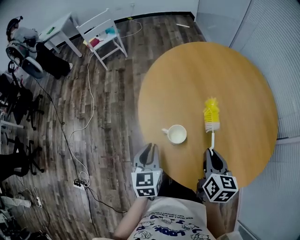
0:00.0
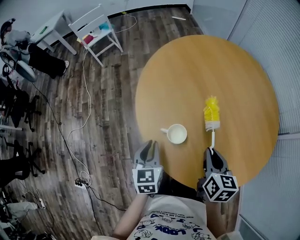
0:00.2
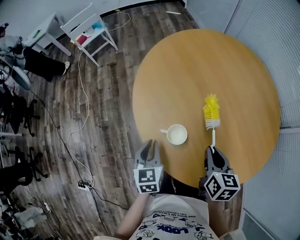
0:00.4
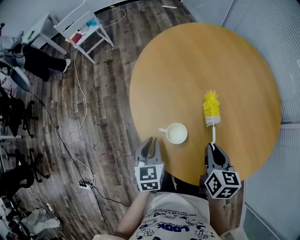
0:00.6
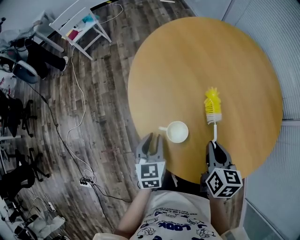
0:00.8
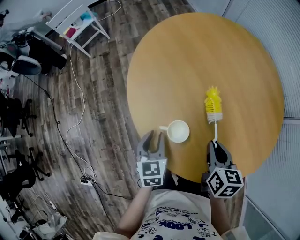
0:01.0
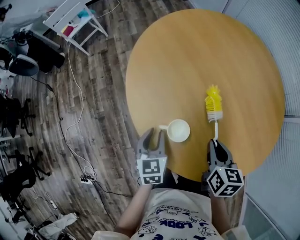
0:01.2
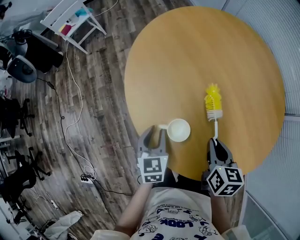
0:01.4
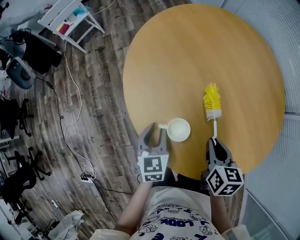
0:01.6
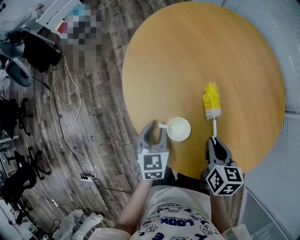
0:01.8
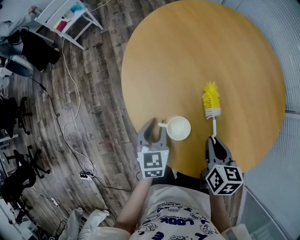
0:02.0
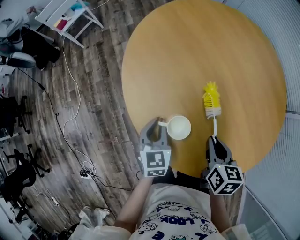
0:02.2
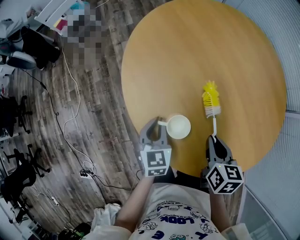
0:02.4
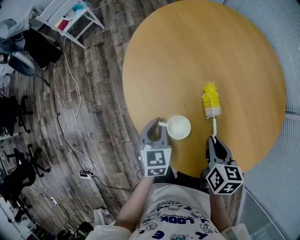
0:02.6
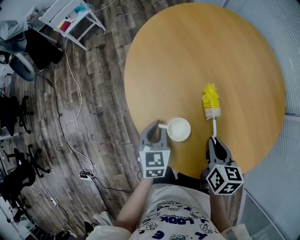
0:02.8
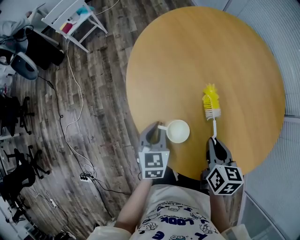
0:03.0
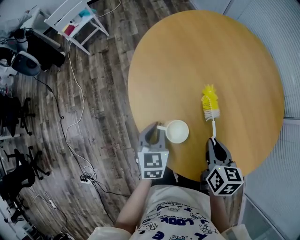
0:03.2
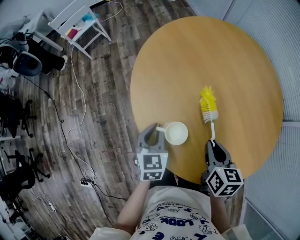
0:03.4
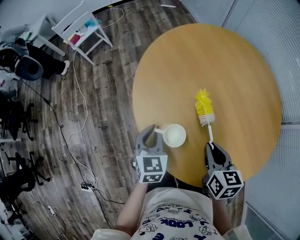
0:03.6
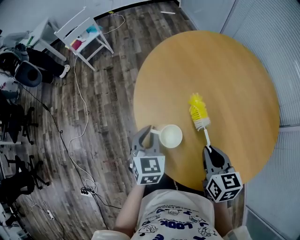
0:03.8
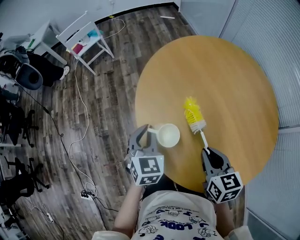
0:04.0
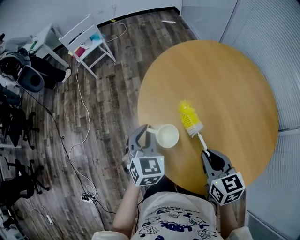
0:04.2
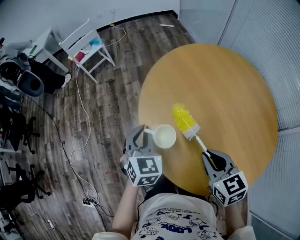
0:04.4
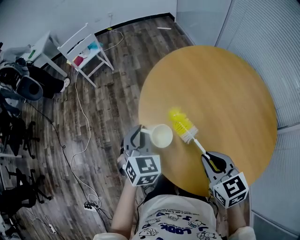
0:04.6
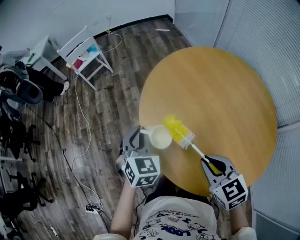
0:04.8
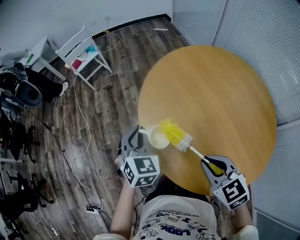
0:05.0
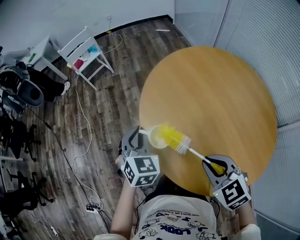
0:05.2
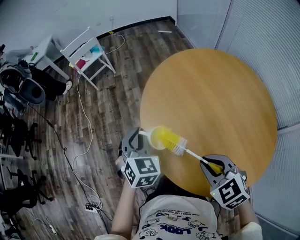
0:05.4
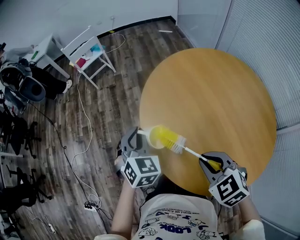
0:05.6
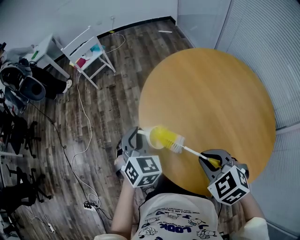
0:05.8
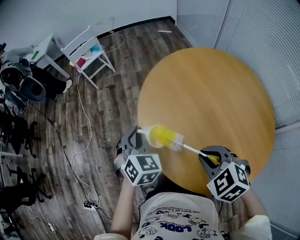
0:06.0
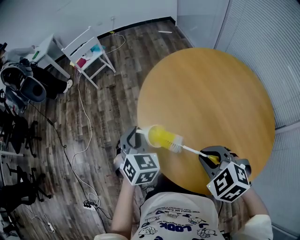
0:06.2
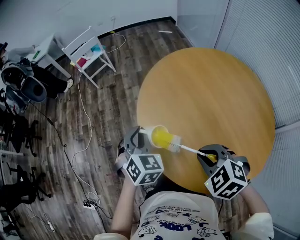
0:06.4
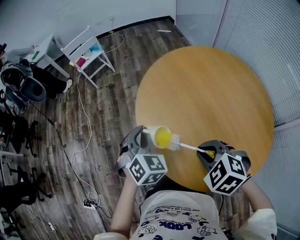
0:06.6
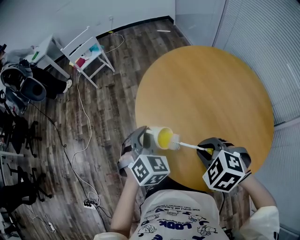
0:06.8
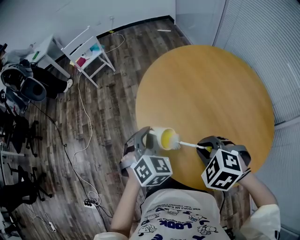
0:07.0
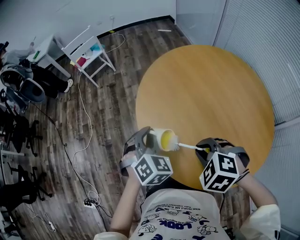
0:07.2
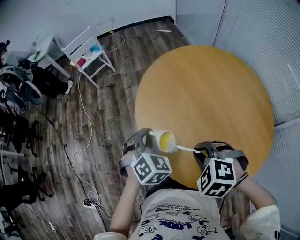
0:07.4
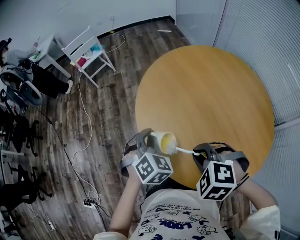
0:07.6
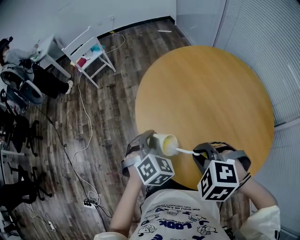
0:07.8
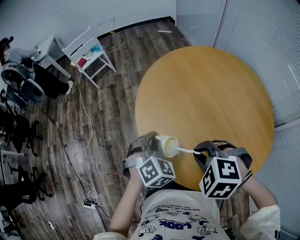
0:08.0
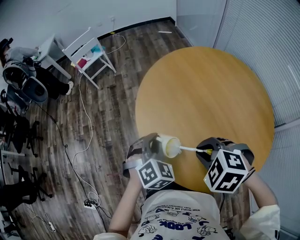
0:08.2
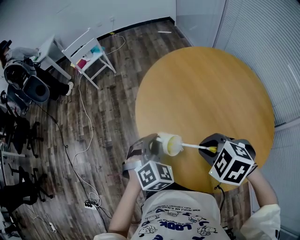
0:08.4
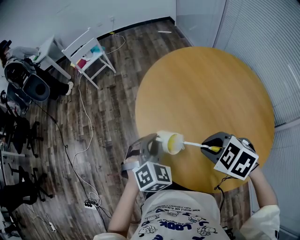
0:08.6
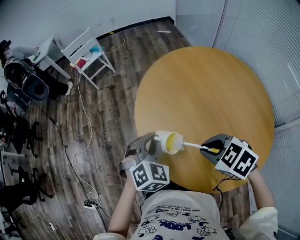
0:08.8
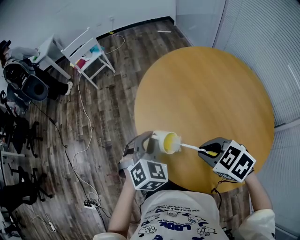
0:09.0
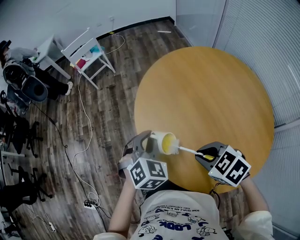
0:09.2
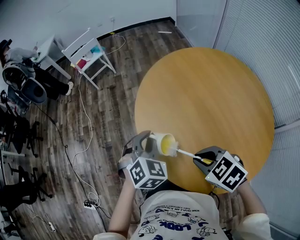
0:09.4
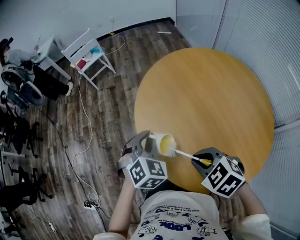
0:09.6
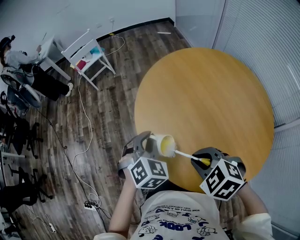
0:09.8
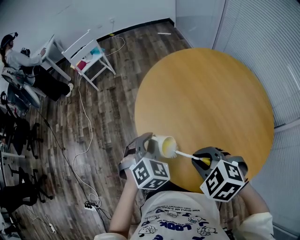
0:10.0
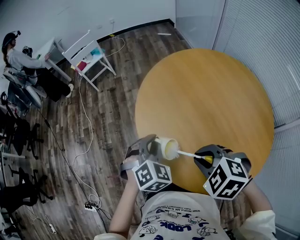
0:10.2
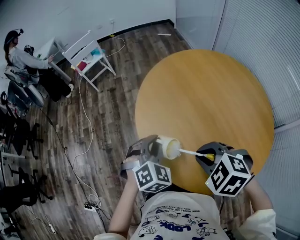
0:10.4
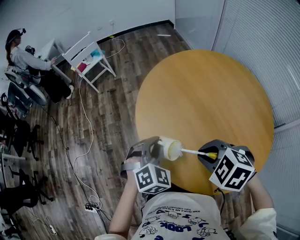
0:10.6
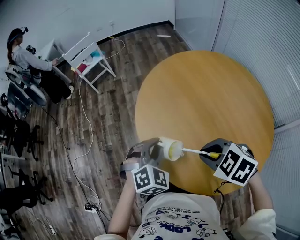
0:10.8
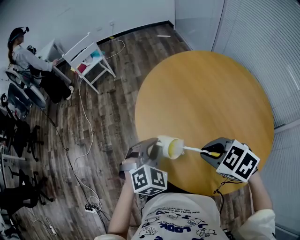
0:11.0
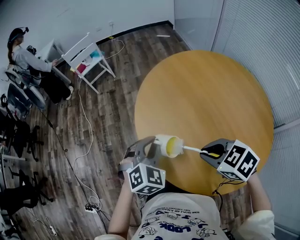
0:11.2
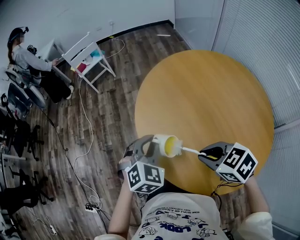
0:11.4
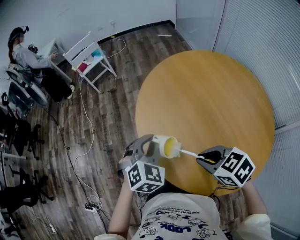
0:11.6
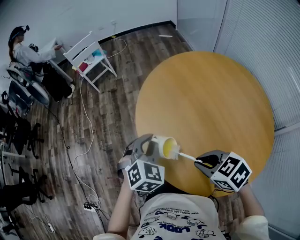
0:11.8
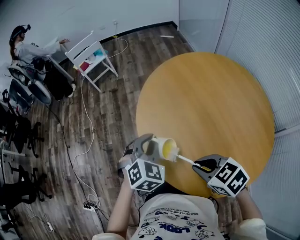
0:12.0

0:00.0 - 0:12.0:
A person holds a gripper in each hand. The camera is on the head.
0:00.0 - 0:01.6: The left gripper shifts approximately 10 cm downward and forward, while the right gripper goes about 5 cm downward.
0:01.6 - 0:03.0: The grippers move only a little.
0:03.0 - 0:04.4: The right gripper travels upward and to the left by roughly 15 cm, and turns by approximately 30 degrees; the left gripper is displaced upward, to the left and forward by some 15 cm, and changes its angle by approximately 20 degrees.
0:04.4 - 0:06.0: The right gripper changes its angle by approximately 40 degrees.
0:06.0 - 0:07.6: The right gripper rotates approximately 20 degrees, while the left gripper is displaced backward by some 5 cm.
0:07.6 - 0:09.0: The right gripper swivels about 30 degrees.
0:09.0 - 0:10.4: There are only small adjustments of the grippers.
0:10.4 - 0:12.0: The right gripper turns by about 30 degrees.

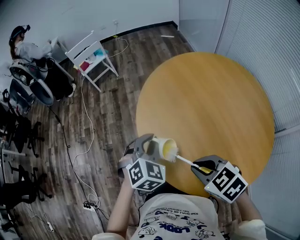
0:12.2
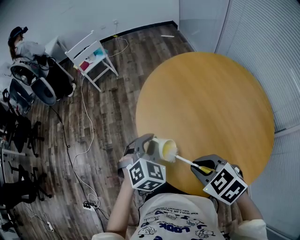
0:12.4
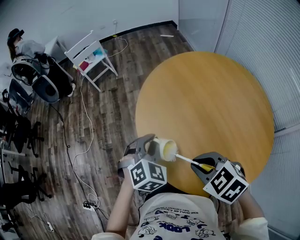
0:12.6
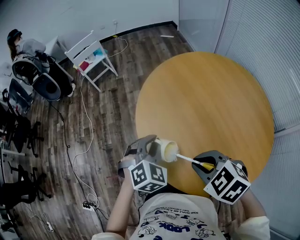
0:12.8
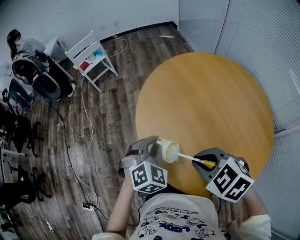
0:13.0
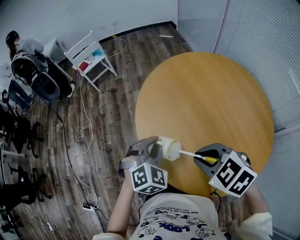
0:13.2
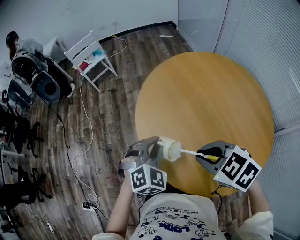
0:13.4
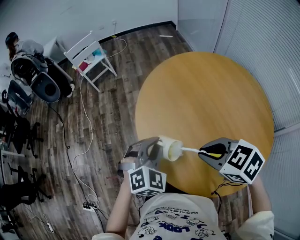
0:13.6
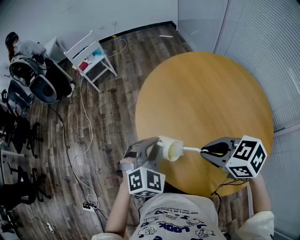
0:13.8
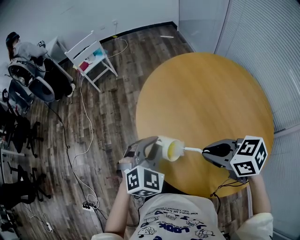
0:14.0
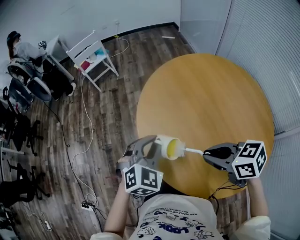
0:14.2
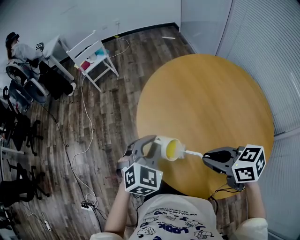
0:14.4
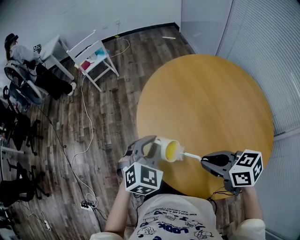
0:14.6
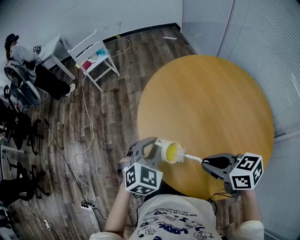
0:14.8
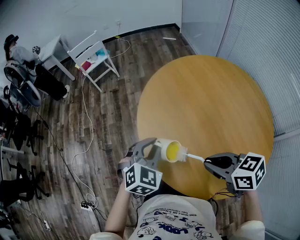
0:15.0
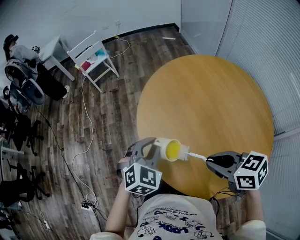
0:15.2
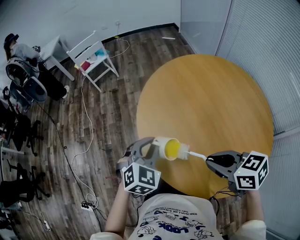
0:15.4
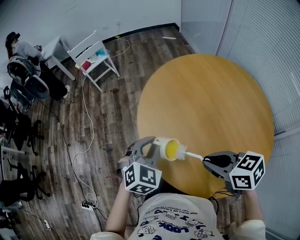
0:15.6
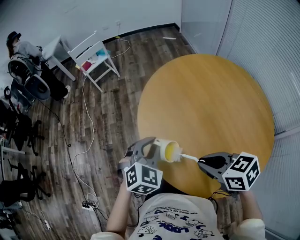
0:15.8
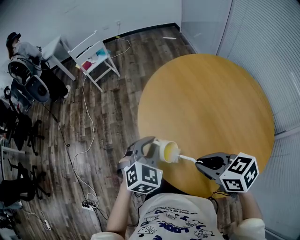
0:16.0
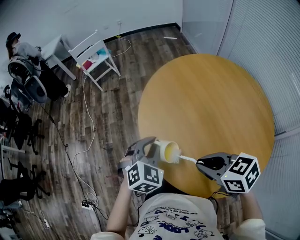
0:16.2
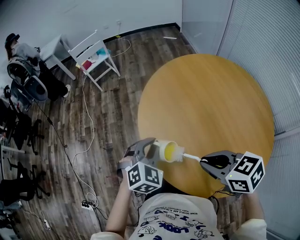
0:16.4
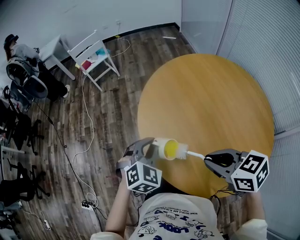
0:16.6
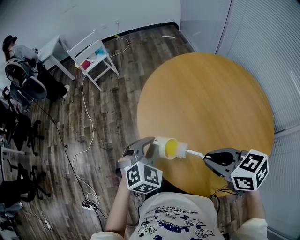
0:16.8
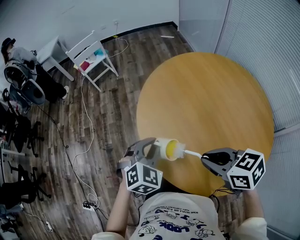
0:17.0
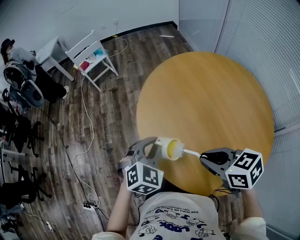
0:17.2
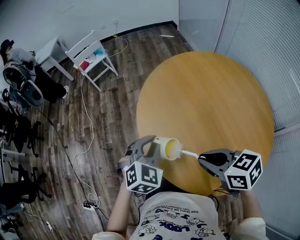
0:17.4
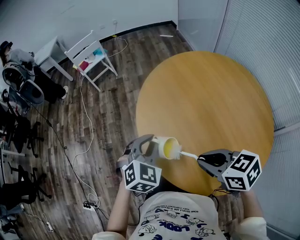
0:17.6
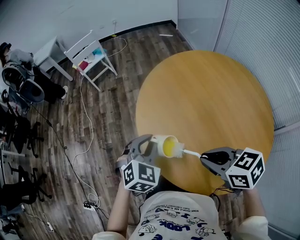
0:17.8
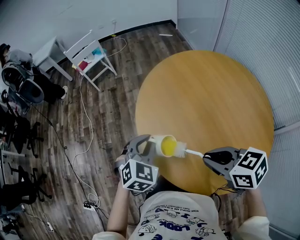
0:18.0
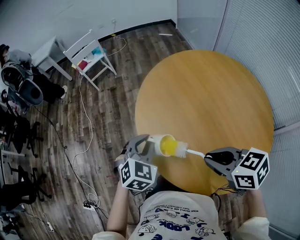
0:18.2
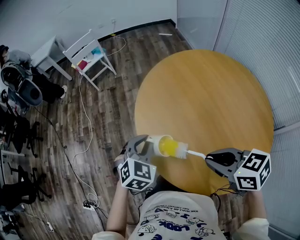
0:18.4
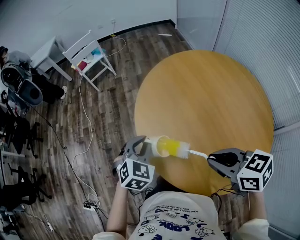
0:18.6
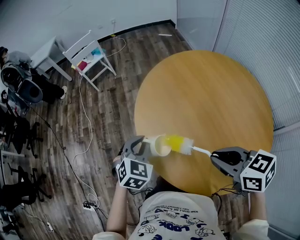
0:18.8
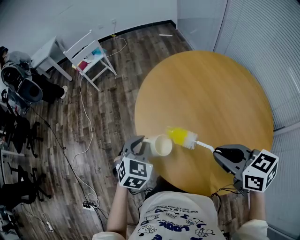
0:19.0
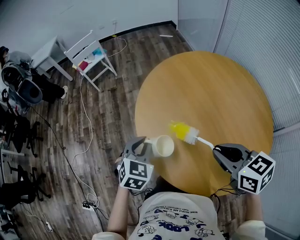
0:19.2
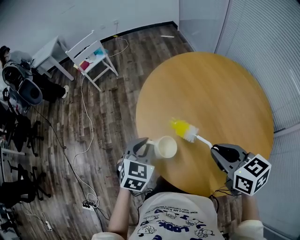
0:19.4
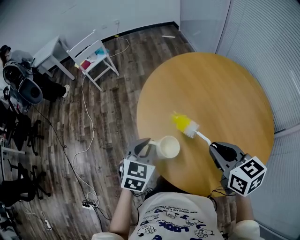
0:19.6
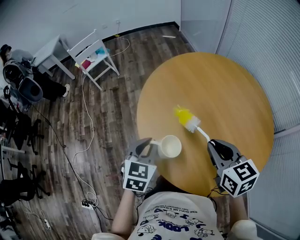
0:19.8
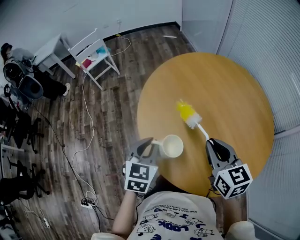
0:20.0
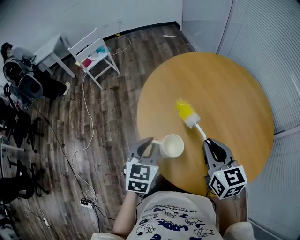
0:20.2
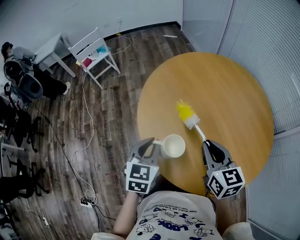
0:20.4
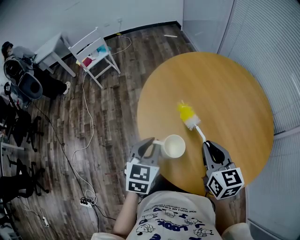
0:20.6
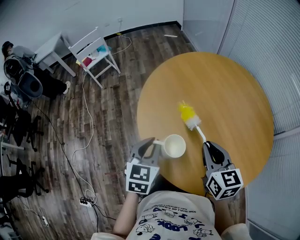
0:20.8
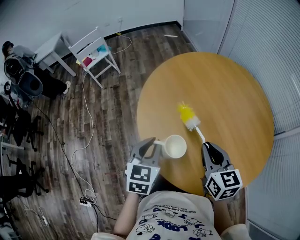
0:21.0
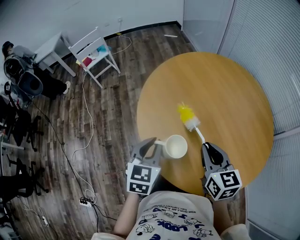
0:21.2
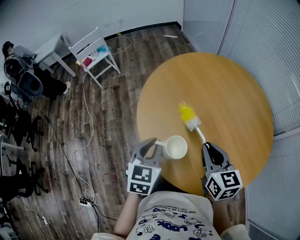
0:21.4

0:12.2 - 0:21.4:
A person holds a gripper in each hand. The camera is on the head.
0:12.2 - 0:13.8: The right gripper changes place by approximately 5 cm.
0:13.8 - 0:18.4: The grippers move only a little.
0:18.4 - 0:19.8: The right gripper ends up about 5 cm from where it was, and changes its angle by approximately 30 degrees; the left gripper swivels about 20 degrees.
0:19.8 - 0:21.4: The grippers move only a little.

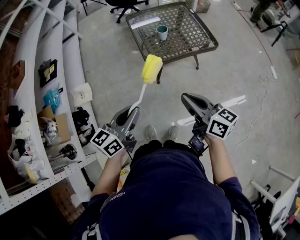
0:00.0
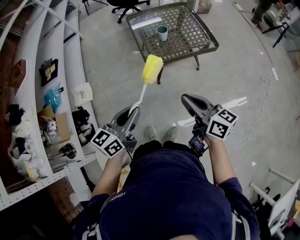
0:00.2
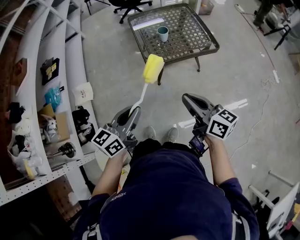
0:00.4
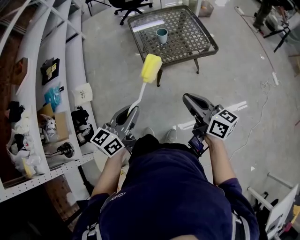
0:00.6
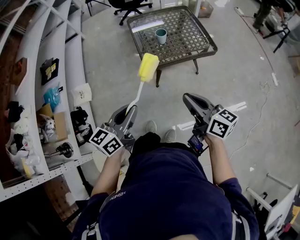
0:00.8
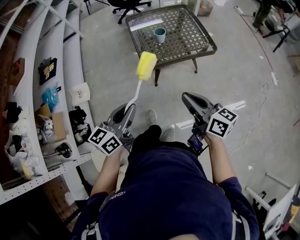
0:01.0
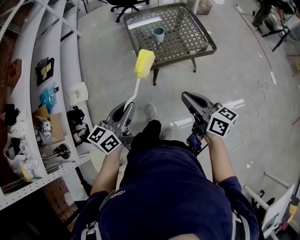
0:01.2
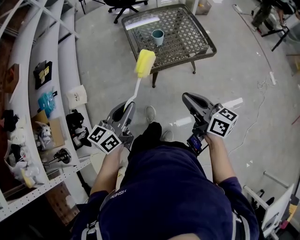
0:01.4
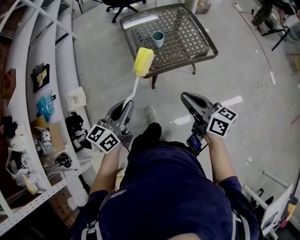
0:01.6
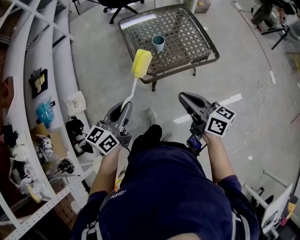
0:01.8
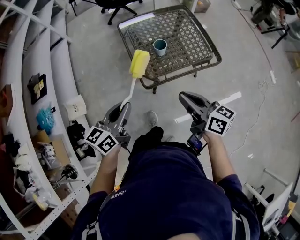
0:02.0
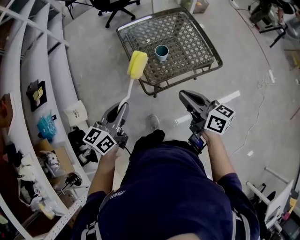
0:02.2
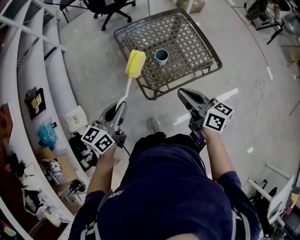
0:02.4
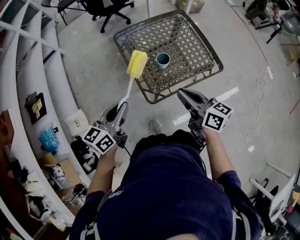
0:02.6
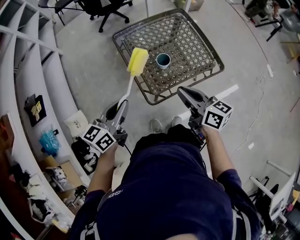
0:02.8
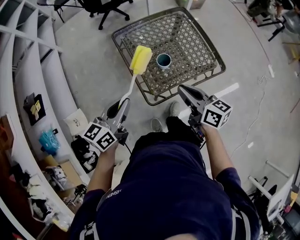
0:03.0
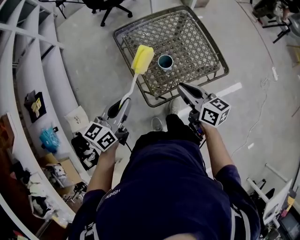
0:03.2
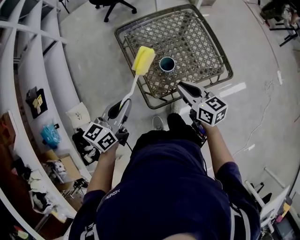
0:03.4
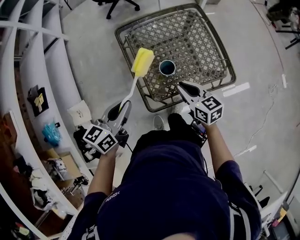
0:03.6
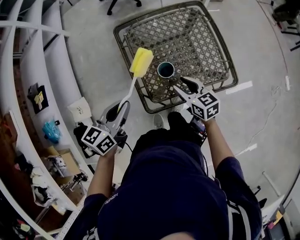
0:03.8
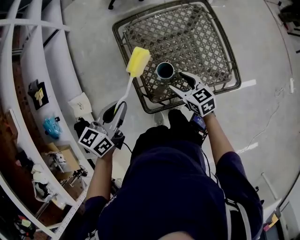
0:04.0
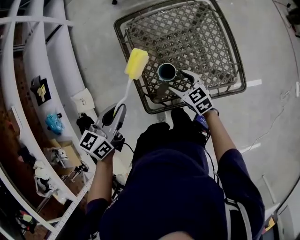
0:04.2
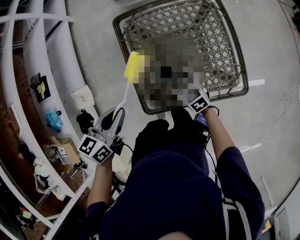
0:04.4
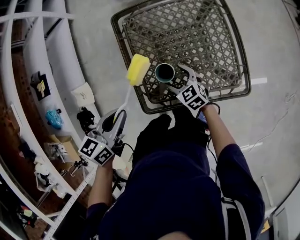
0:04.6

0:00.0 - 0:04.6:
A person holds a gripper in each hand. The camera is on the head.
0:00.0 - 0:01.6: Both grippers move forward, some 10 cm.
0:01.6 - 0:03.0: The two grippers go approximately 25 cm forward.
0:03.0 - 0:04.6: The left gripper moves downward, to the right and forward, roughly 10 cm, and turns by approximately 30 degrees. The right gripper heads downward and forward, covering about 30 cm, rotates about 50 degrees, and opens its fingers.
